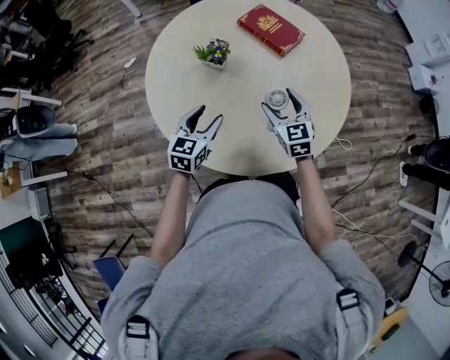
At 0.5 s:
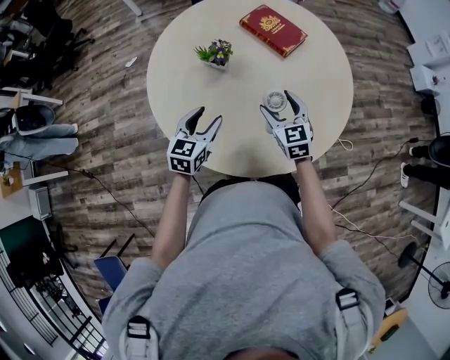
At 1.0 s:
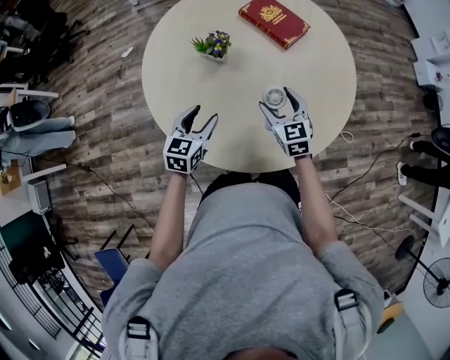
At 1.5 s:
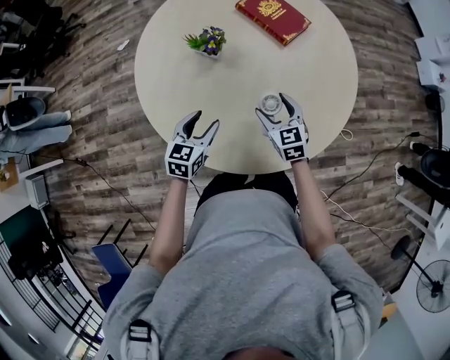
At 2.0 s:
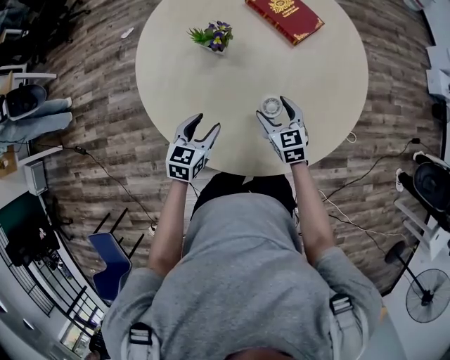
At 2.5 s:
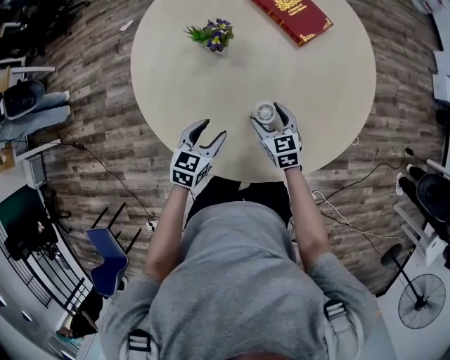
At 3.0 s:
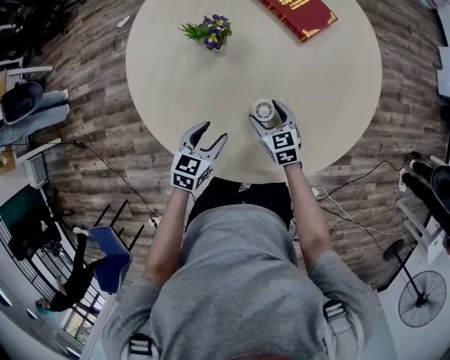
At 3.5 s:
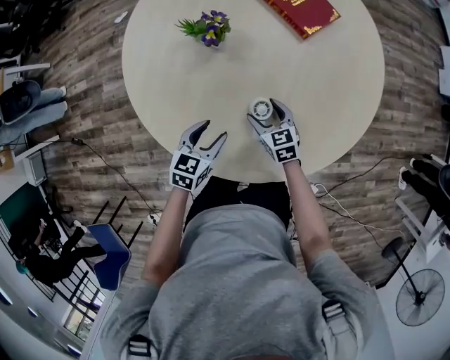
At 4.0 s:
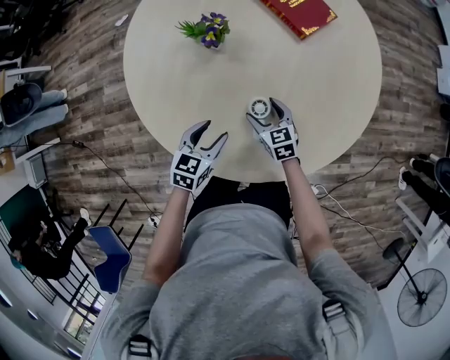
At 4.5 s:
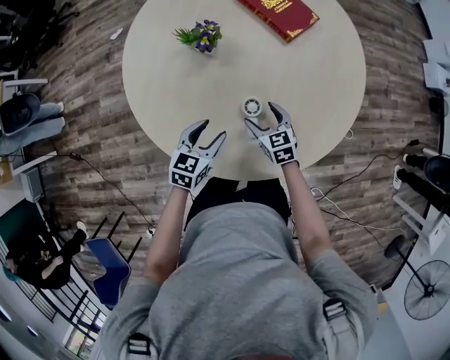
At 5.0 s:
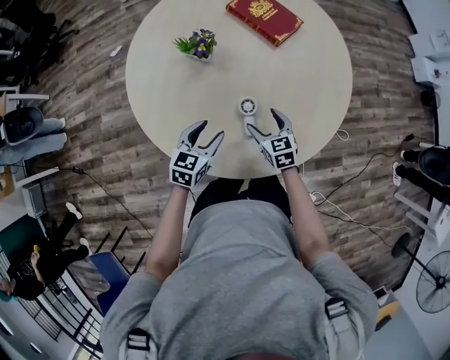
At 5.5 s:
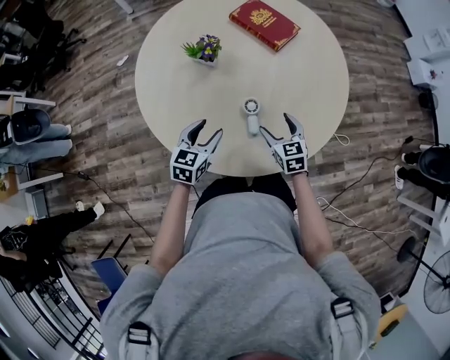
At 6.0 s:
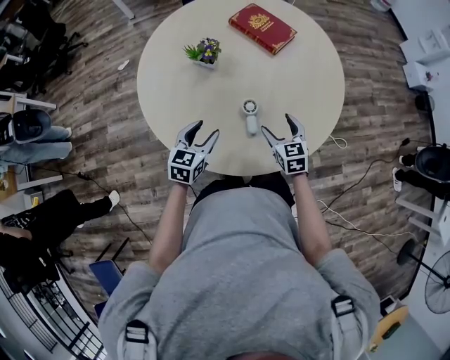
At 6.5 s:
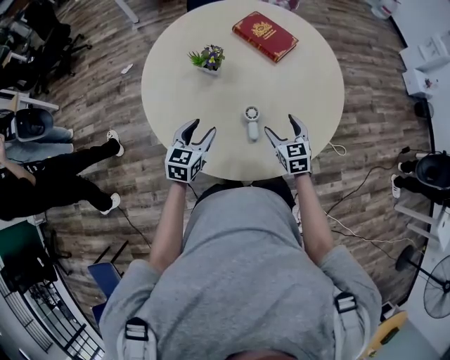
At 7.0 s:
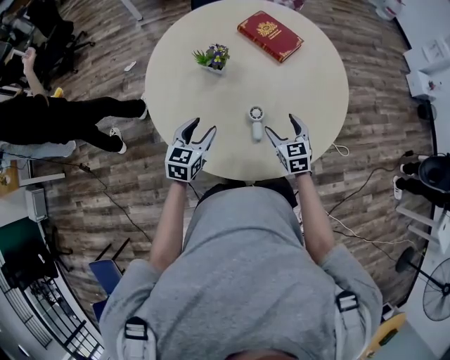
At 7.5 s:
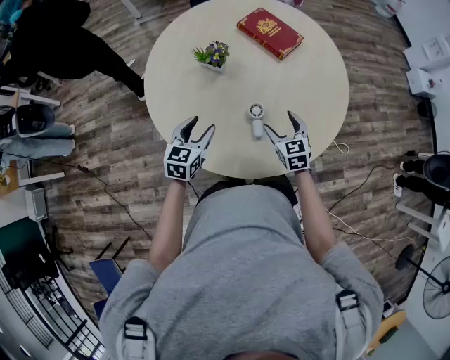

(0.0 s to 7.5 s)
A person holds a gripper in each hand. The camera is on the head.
0.0 s - 2.0 s: Both grippers travel together downward, roughly 10 cm.
2.0 s - 4.0 s: The left gripper goes approximately 5 cm downward, while the right gripper moves downward, some 10 cm.
4.0 s - 5.5 s: The left gripper is displaced upward by roughly 10 cm; the right gripper is displaced upward, backward and to the right by approximately 15 cm.
5.5 s - 7.5 s: The left gripper shifts by some 5 cm.

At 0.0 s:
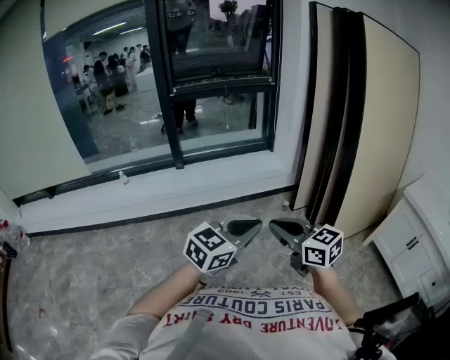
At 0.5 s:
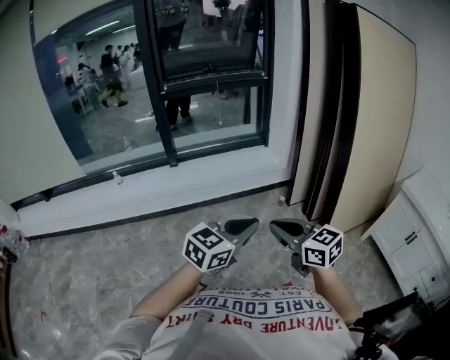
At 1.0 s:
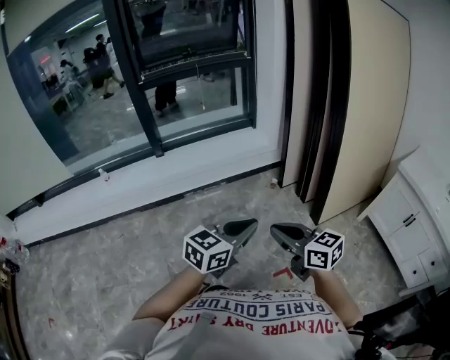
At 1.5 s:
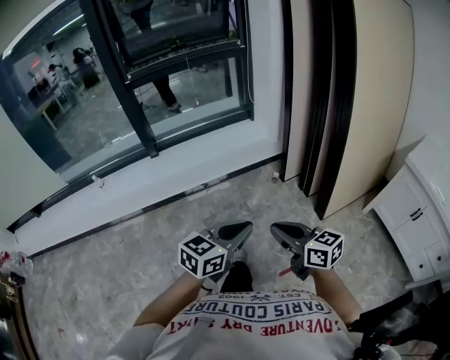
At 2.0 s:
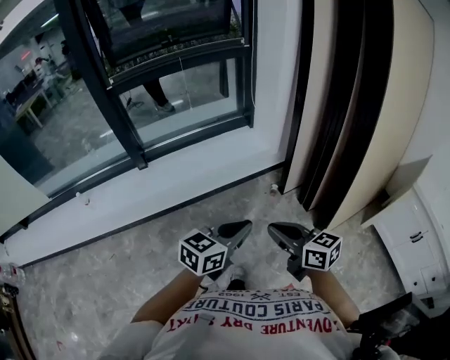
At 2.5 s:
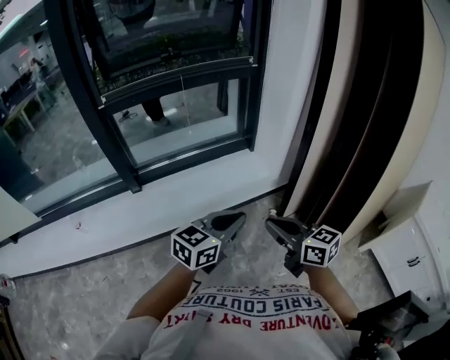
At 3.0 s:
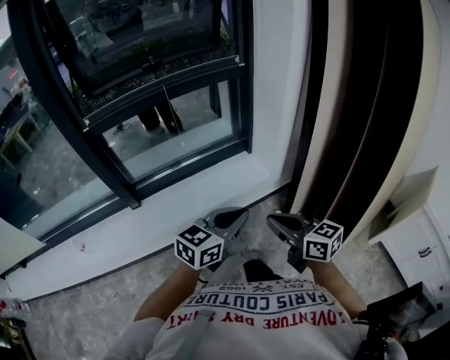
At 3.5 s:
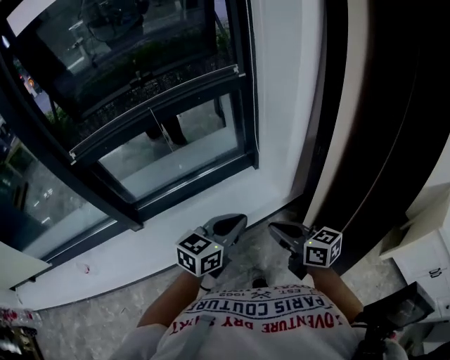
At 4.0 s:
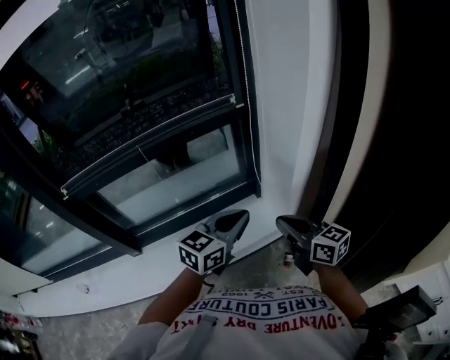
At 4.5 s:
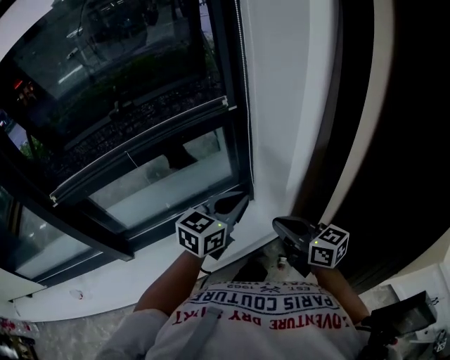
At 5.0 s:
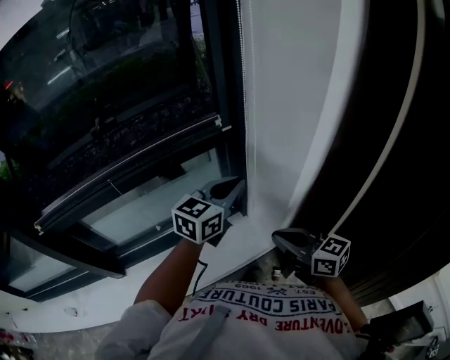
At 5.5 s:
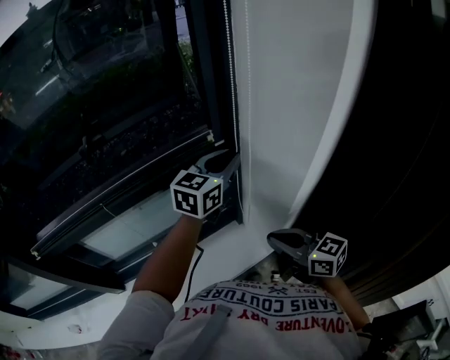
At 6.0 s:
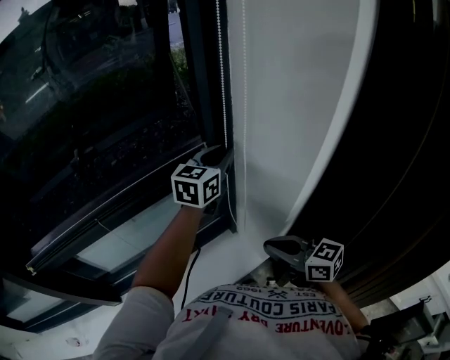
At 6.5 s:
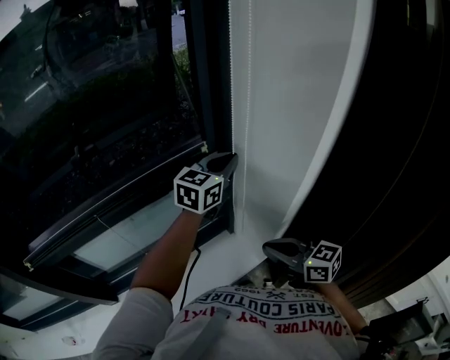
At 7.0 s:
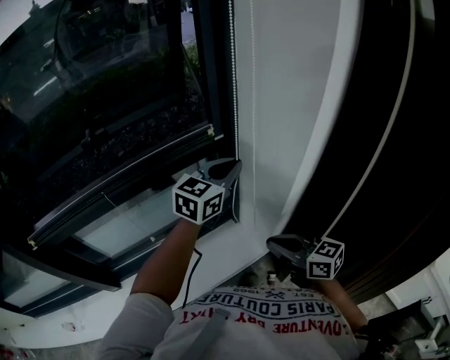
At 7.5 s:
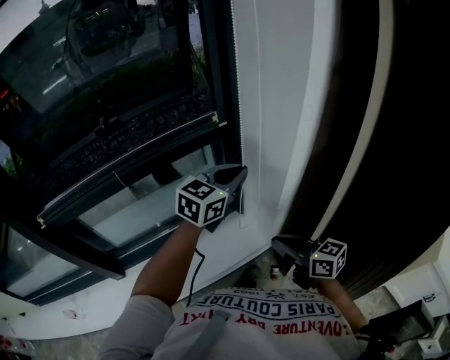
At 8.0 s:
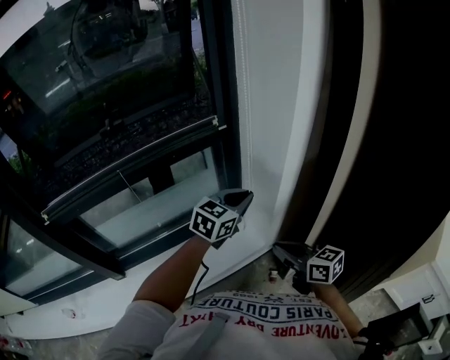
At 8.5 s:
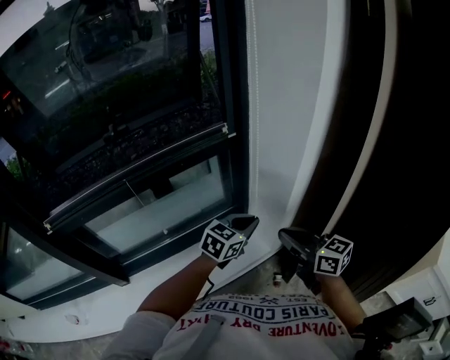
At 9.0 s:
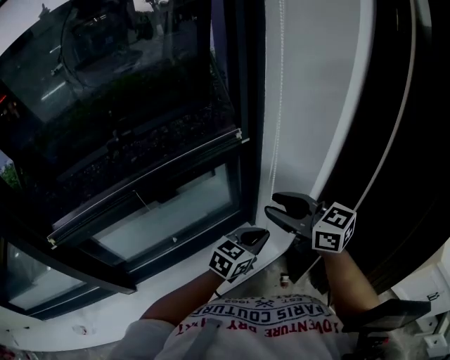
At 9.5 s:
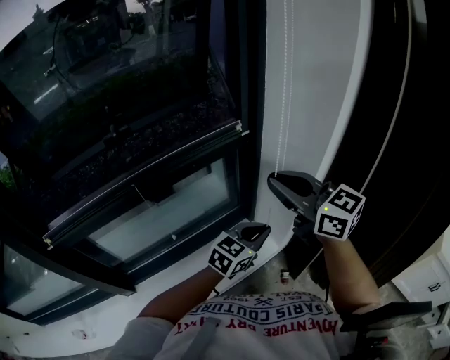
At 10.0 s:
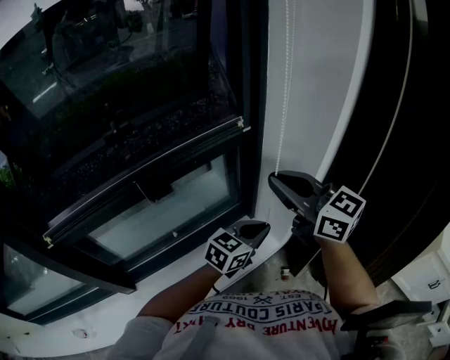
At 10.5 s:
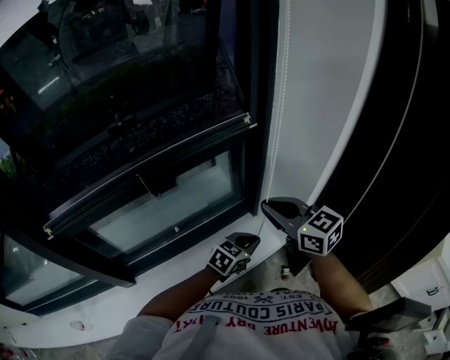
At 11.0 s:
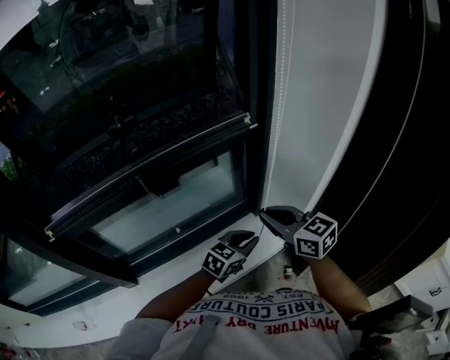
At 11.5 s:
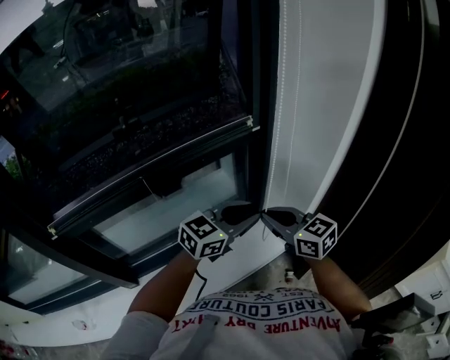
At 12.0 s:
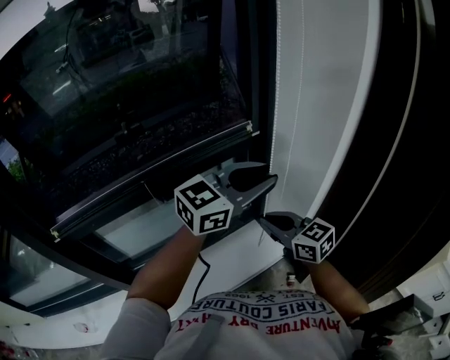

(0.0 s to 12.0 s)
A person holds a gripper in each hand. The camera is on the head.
0.0 s - 2.0 s: The two grippers go approximately 30 cm forward. The right gripper swivels about 20 degrees; the left gripper changes its angle by about 20 degrees.
2.0 s - 4.0 s: The pair of grippers is taken forward, approximately 60 cm.
4.0 s - 6.0 s: The left gripper moves forward, some 35 cm; the right gripper heads forward, covering some 10 cm.
6.0 s - 8.0 s: The left gripper moves backward, some 25 cm; the right gripper heads backward, covering roughly 15 cm.
8.0 s - 10.0 s: The right gripper travels upward, to the left and forward by approximately 30 cm, swivels about 30 degrees, and opens, then closes again. Meanwhile the left gripper heads backward, to the left and downward, covering approximately 10 cm.
10.0 s - 12.0 s: The left gripper is displaced upward by approximately 20 cm, rotates about 20 degrees, and opens its fingers. The right gripper goes roughly 15 cm downward.

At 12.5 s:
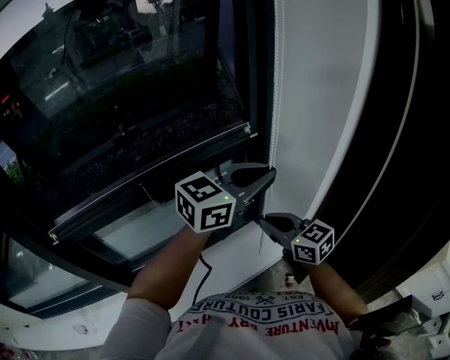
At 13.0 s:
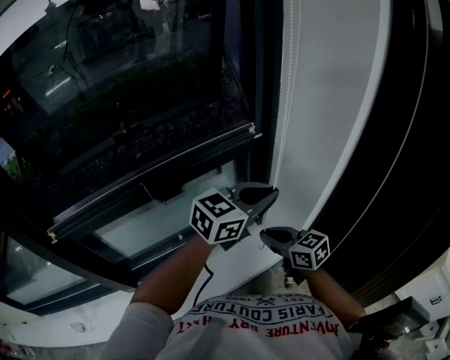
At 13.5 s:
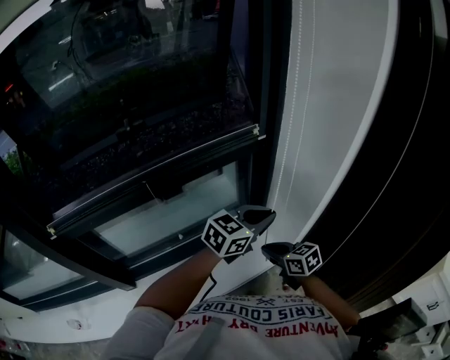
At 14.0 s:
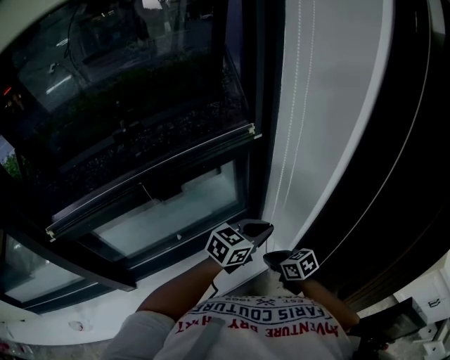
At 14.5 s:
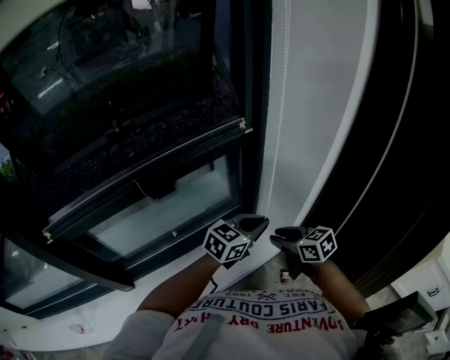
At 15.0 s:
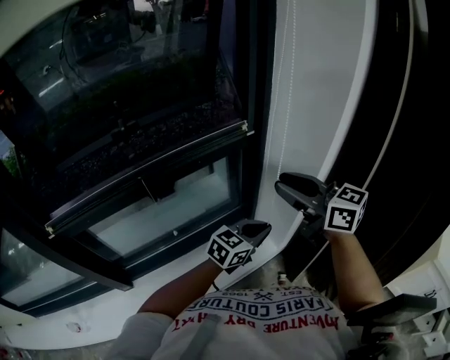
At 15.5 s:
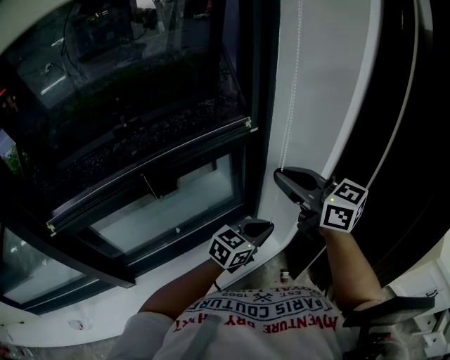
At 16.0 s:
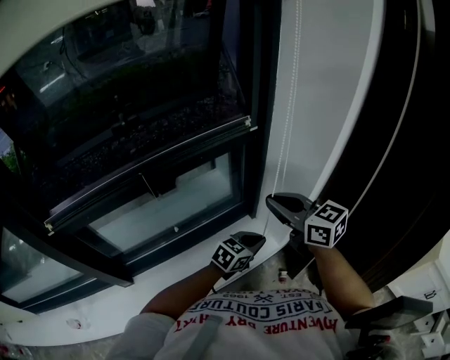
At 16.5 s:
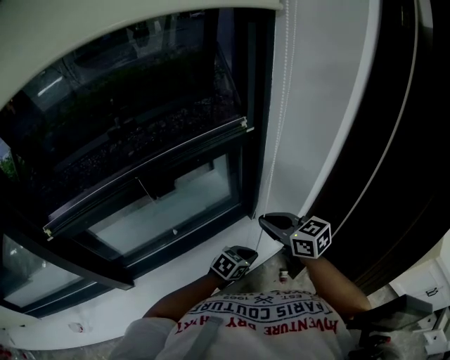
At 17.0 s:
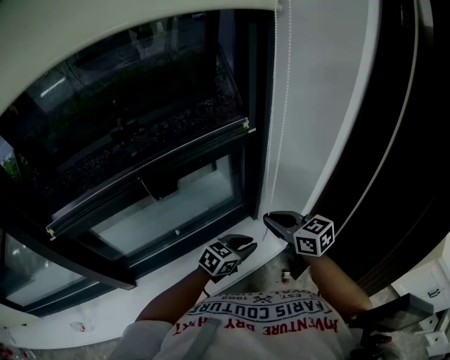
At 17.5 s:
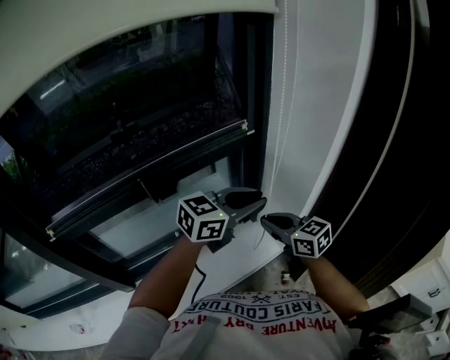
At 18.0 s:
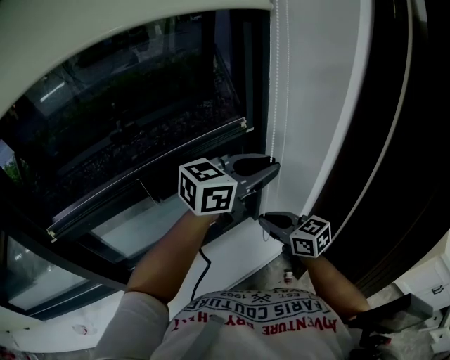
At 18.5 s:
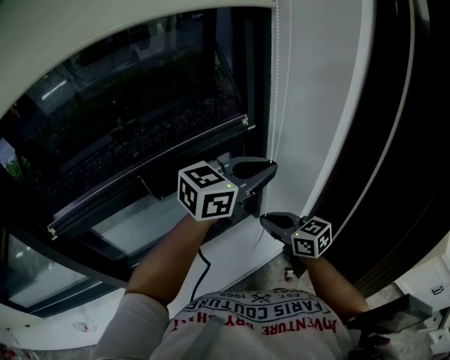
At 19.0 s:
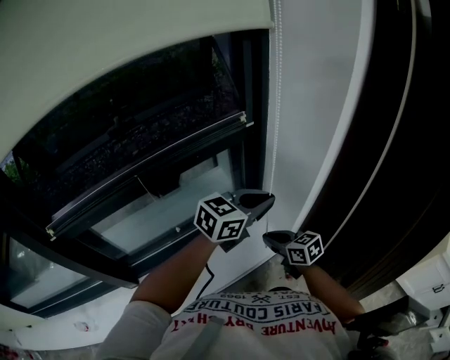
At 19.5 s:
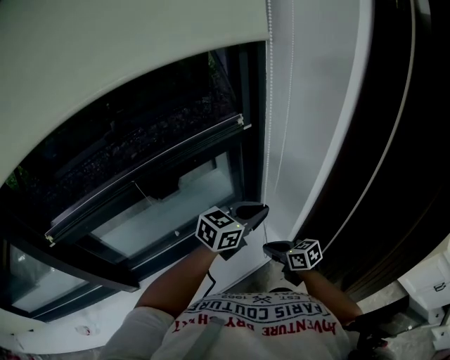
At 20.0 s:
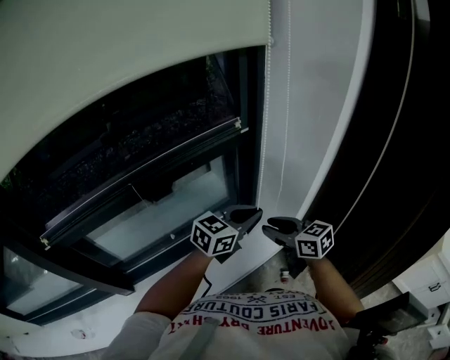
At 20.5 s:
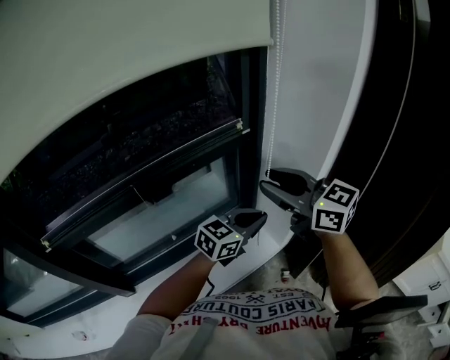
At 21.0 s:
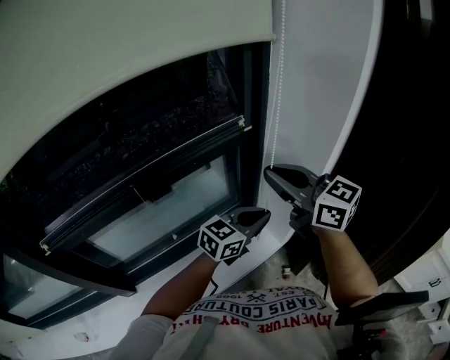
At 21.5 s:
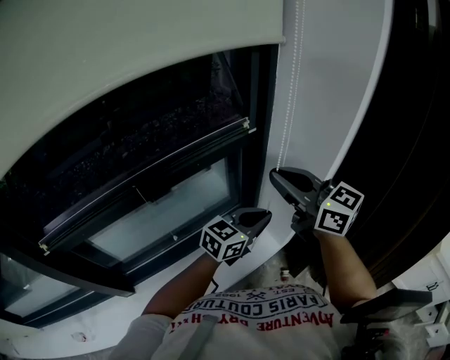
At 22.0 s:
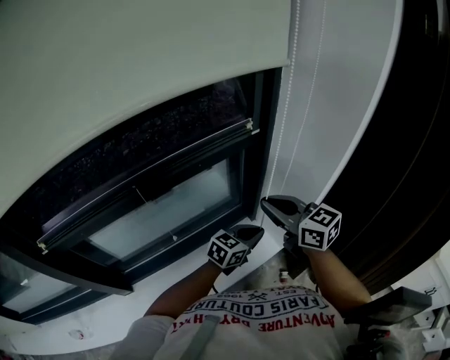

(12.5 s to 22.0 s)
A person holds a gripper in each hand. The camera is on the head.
12.5 s - 14.5 s: The right gripper goes about 15 cm downward and to the right, turns by about 20 degrees, and opens, while the left gripper goes about 20 cm downward.
14.5 s - 16.5 s: The left gripper travels downward by about 20 cm, and swivels approximately 20 degrees. Meanwhile the right gripper heads to the left, covering approximately 5 cm, reaches some 30 cm upward, then returns, and closes.
16.5 s - 18.0 s: The left gripper moves upward, roughly 40 cm, and tilts its fingers some 40 degrees upward.
18.0 s - 20.0 s: The left gripper travels downward by about 20 cm. Meanwhile the right gripper reaches about 15 cm downward, then returns, and opens up.
20.0 s - 22.0 s: The right gripper heads upward and to the left, covering roughly 10 cm, and closes its fingers, while the left gripper is displaced downward by about 10 cm.
